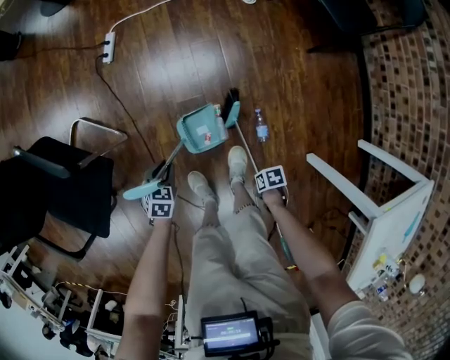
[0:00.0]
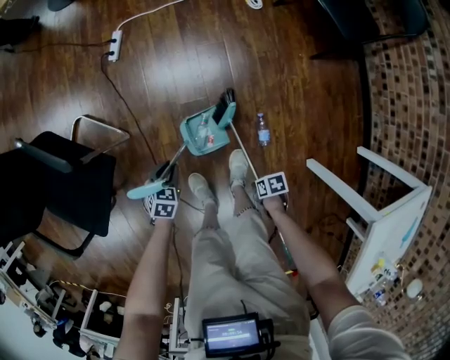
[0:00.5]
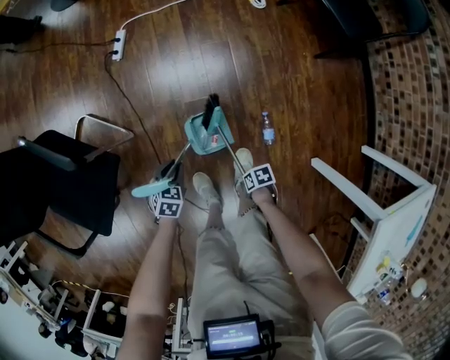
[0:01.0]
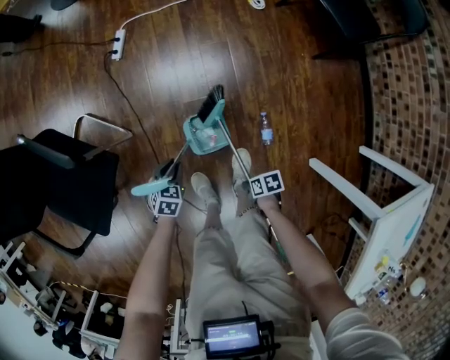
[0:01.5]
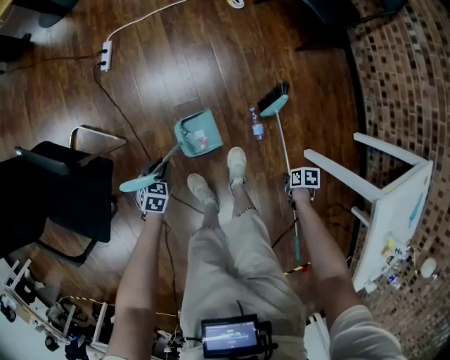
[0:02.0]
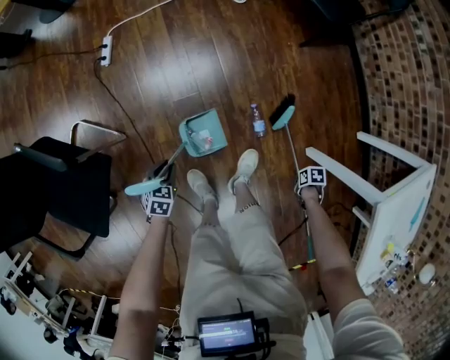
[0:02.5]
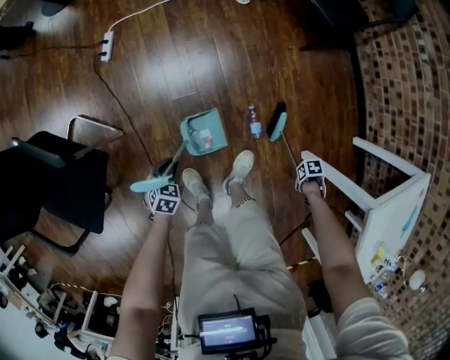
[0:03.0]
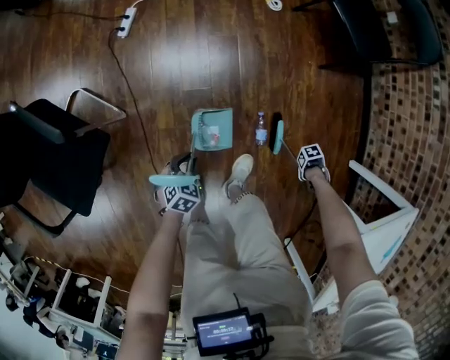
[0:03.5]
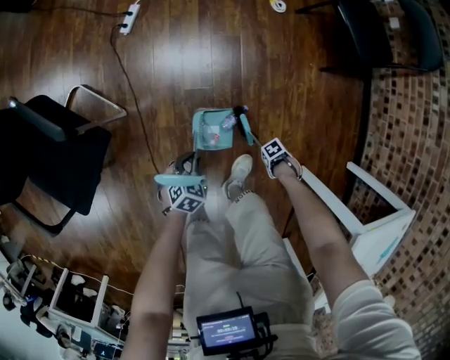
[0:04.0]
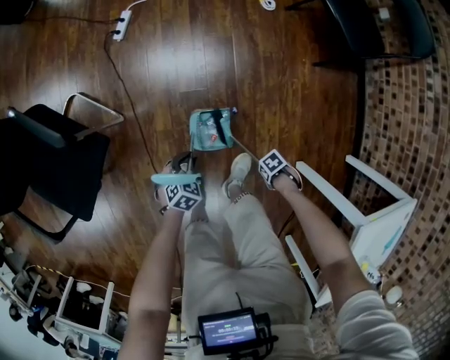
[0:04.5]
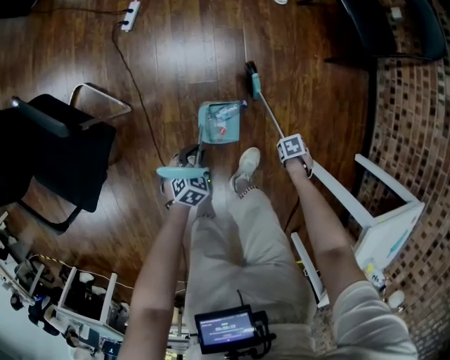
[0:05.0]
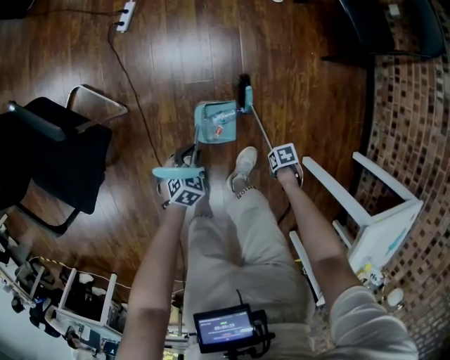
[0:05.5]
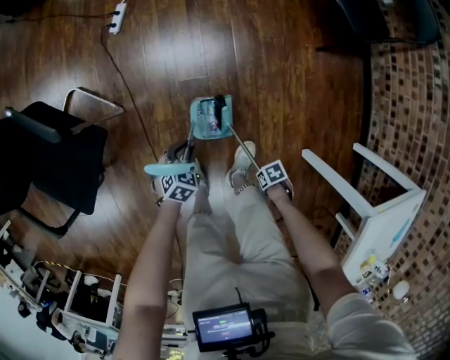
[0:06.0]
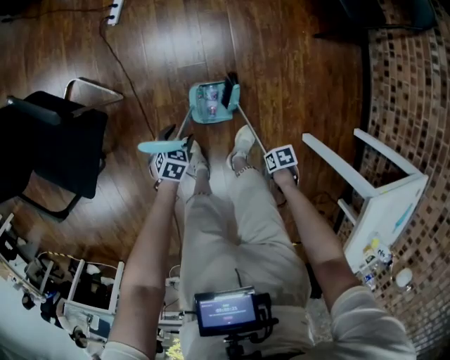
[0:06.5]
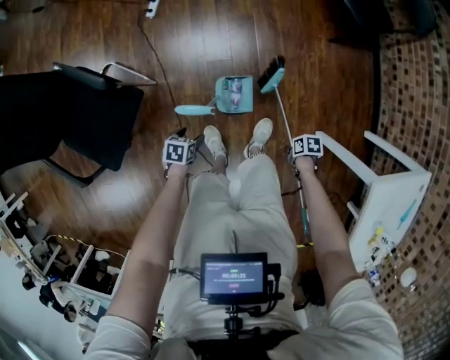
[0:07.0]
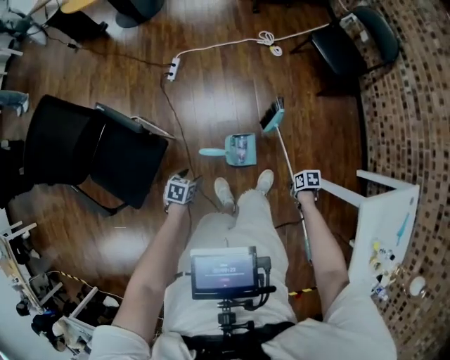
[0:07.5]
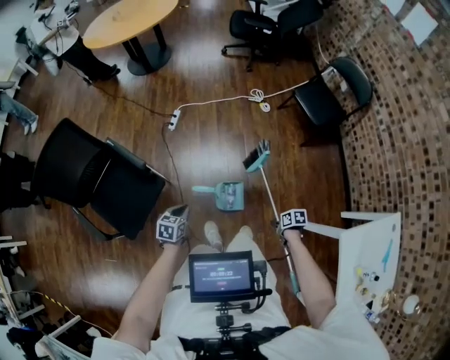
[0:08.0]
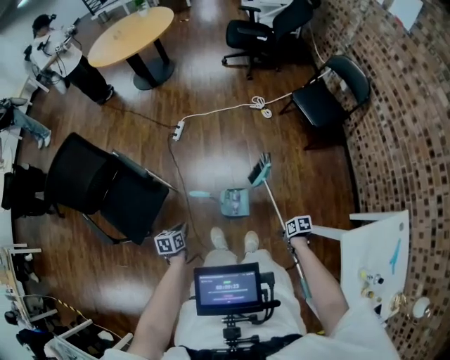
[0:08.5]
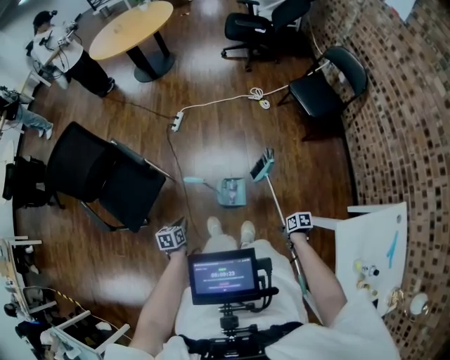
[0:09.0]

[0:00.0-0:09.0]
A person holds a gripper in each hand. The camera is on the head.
0:02.0 to 0:04.5: The left gripper ends up about 10 cm from where it was.
0:04.5 to 0:07.0: The left gripper ends up about 15 cm from where it was, turns by about 30 degrees, and opens its fingers.
0:07.0 to 0:09.0: The left gripper shifts roughly 30 cm upward, turns by roughly 30 degrees, and closes its fingers.

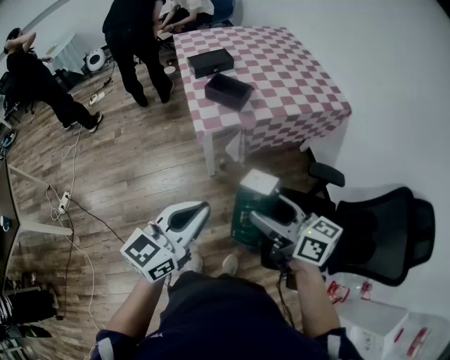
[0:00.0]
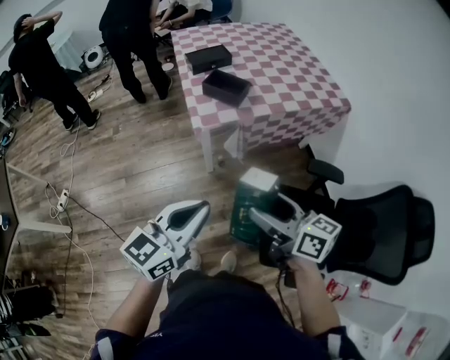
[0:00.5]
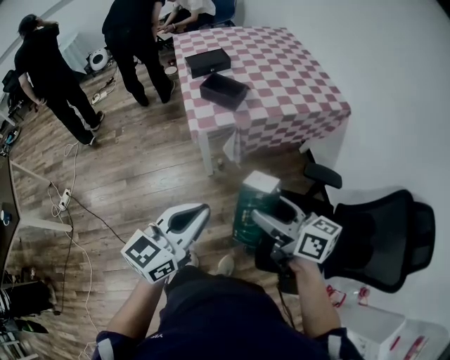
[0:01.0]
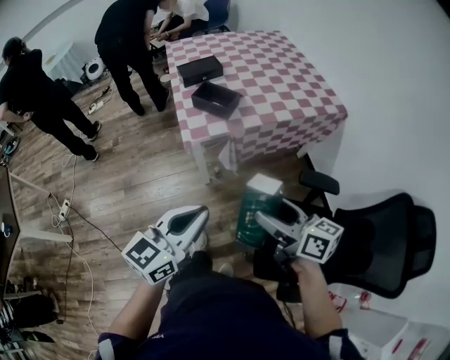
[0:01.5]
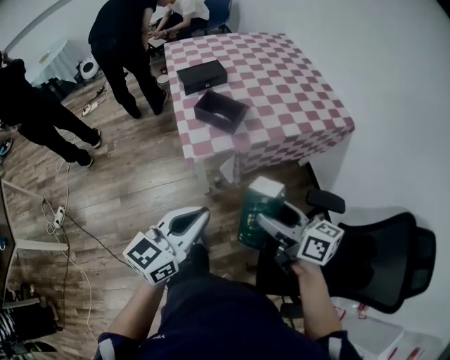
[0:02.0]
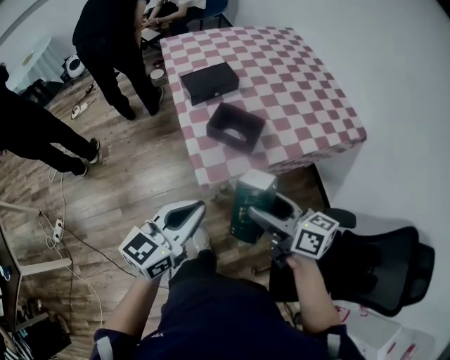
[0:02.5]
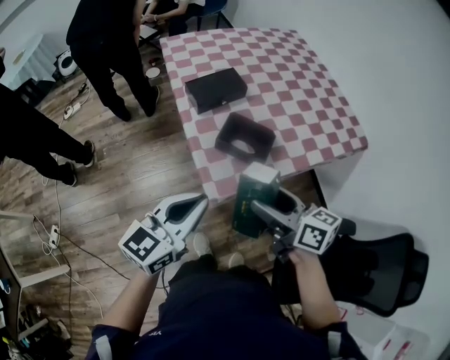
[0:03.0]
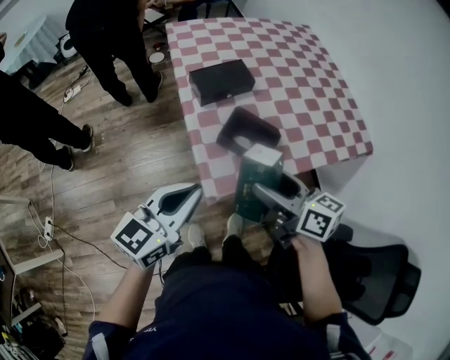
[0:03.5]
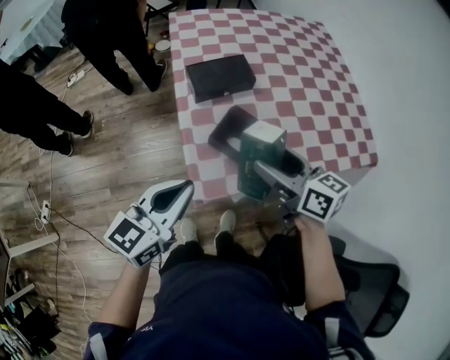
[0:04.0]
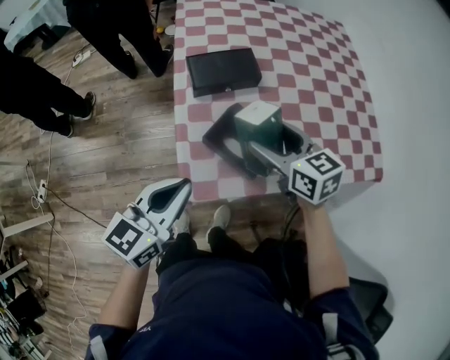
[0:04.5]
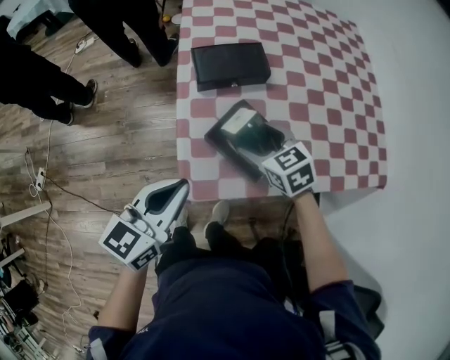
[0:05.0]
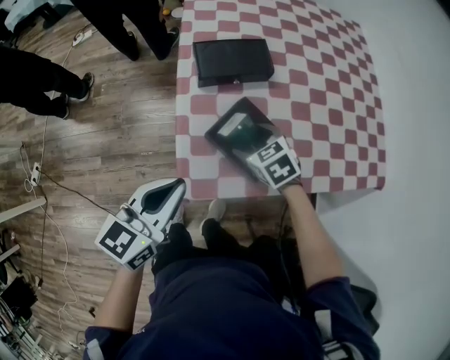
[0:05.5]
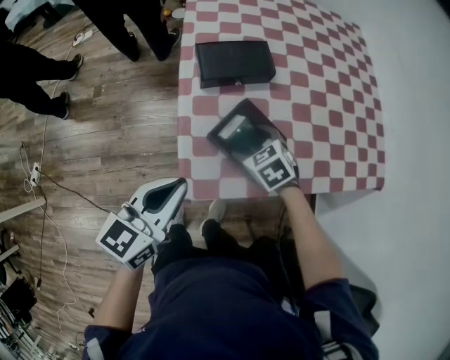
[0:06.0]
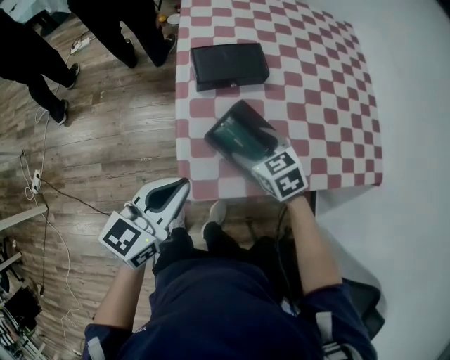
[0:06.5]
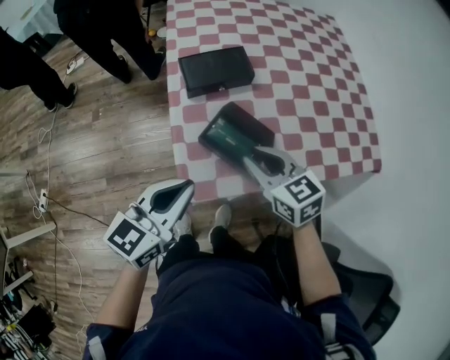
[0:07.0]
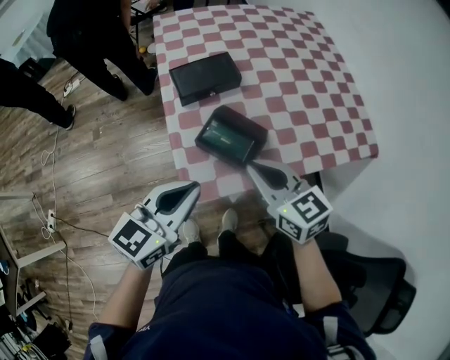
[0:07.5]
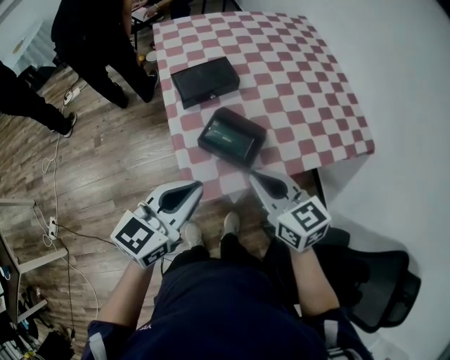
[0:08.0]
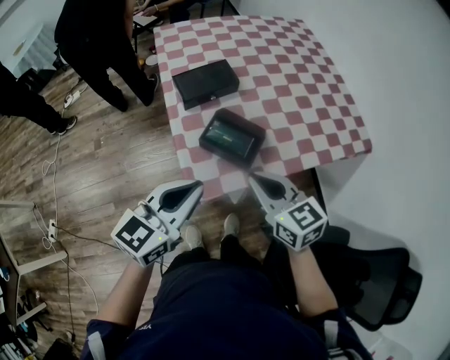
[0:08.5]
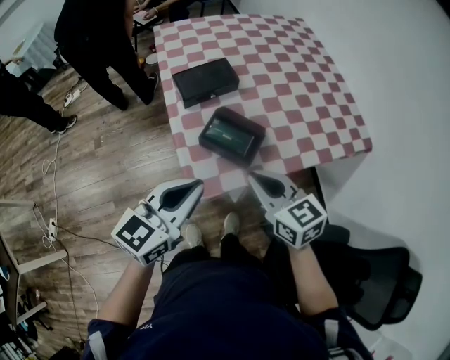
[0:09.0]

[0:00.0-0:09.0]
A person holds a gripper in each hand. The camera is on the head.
0:00.0 to 0:02.0: The left gripper goes some 15 cm forward; the right gripper moves forward and to the right, about 15 cm.
0:02.0 to 0:04.5: Both grippers move forward, roughly 40 cm. The right gripper turns by roughly 30 degrees.
0:04.5 to 0:07.0: The right gripper travels backward by approximately 5 cm, travels downward and back again, about 15 cm each way, and closes up.
0:07.0 to 0:09.0: The right gripper is displaced backward and upward by some 10 cm. The left gripper moves some 5 cm.

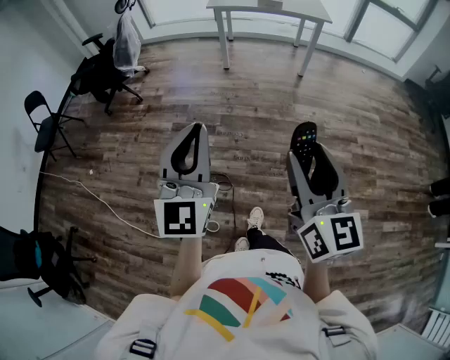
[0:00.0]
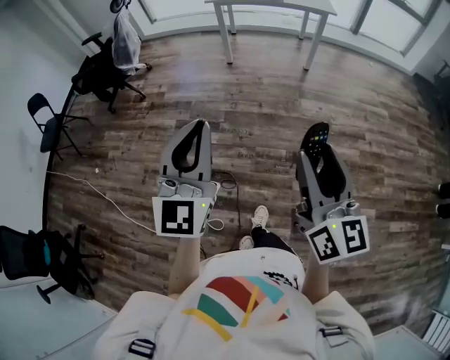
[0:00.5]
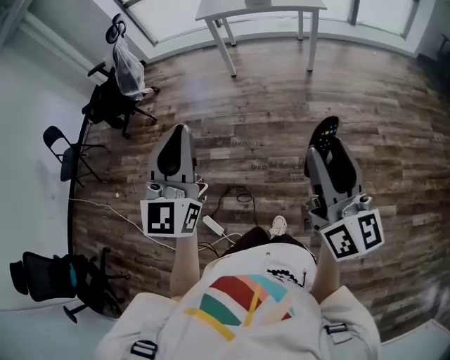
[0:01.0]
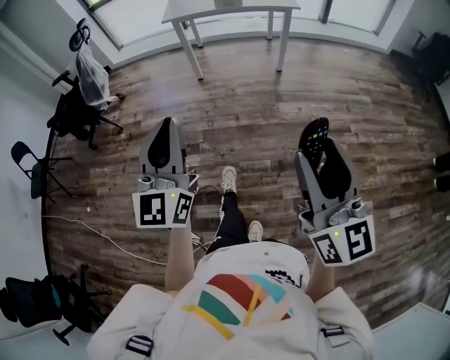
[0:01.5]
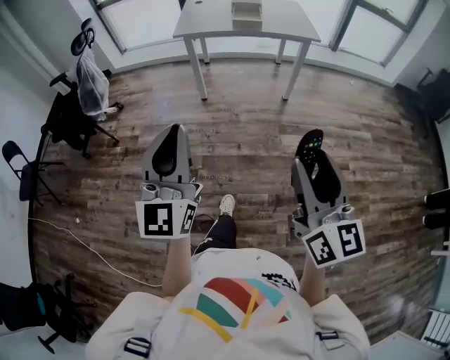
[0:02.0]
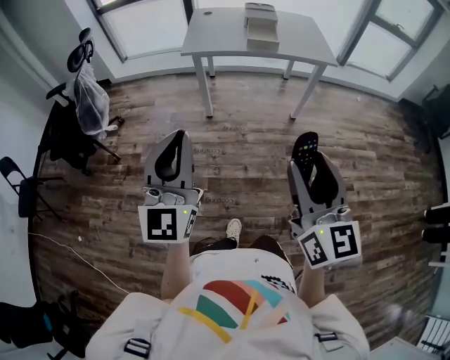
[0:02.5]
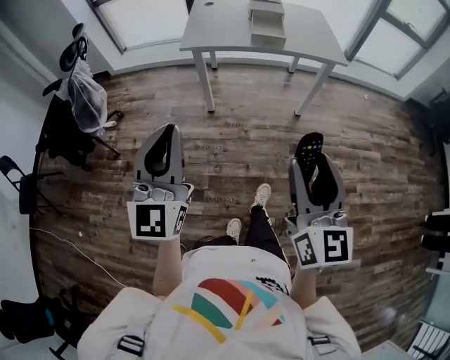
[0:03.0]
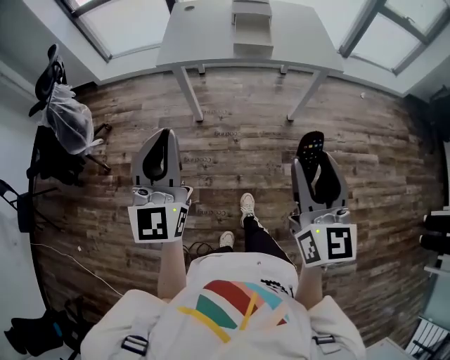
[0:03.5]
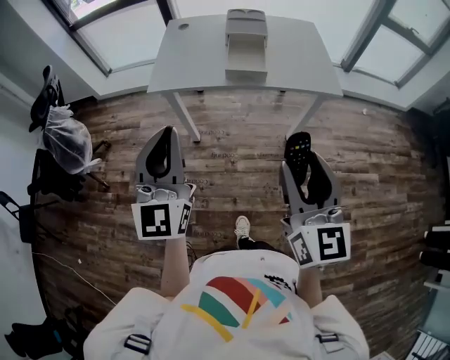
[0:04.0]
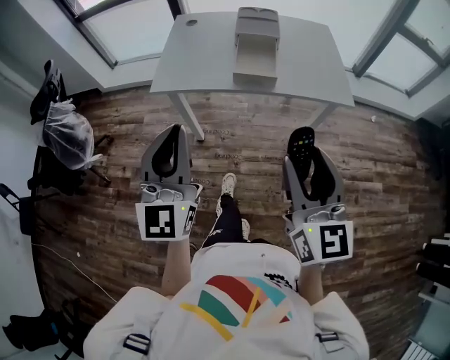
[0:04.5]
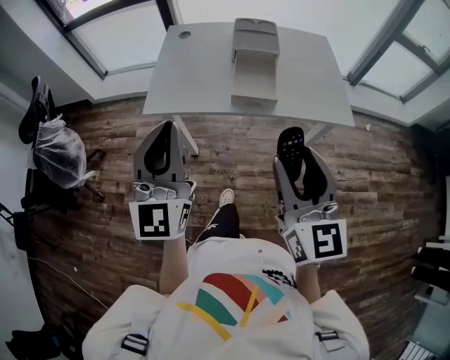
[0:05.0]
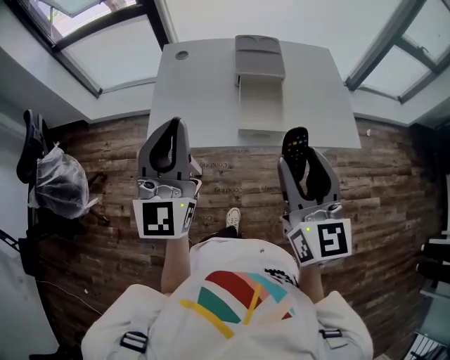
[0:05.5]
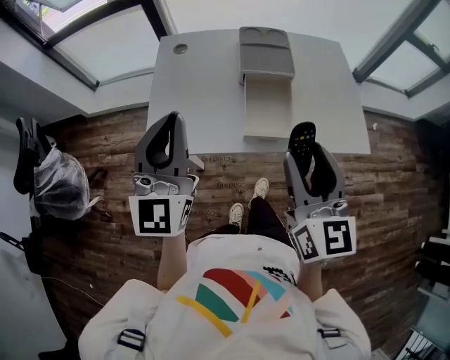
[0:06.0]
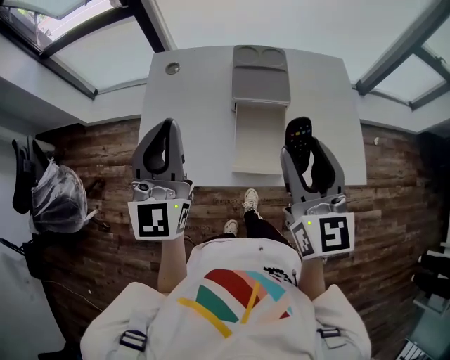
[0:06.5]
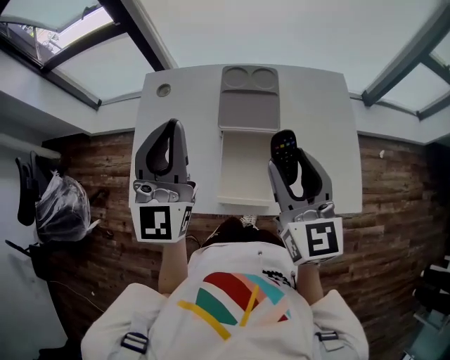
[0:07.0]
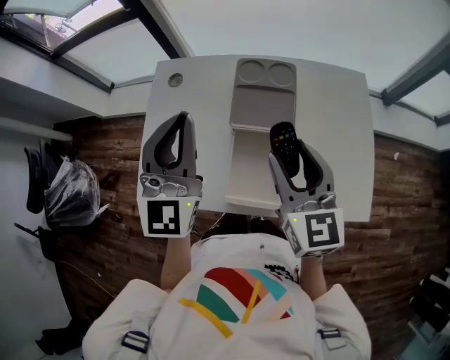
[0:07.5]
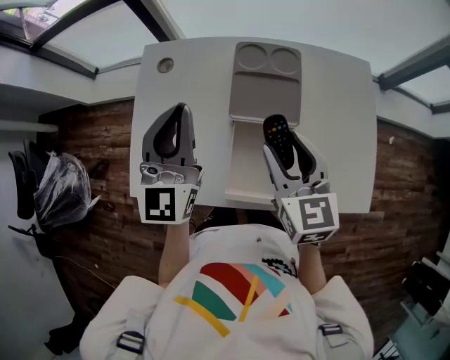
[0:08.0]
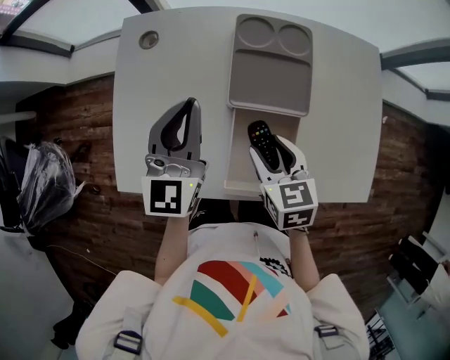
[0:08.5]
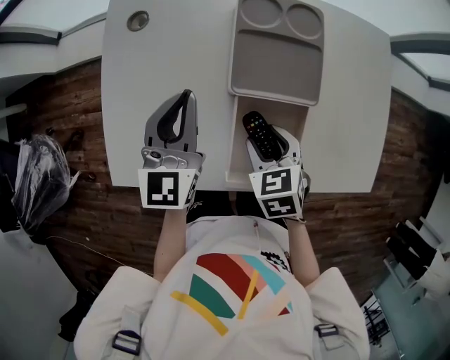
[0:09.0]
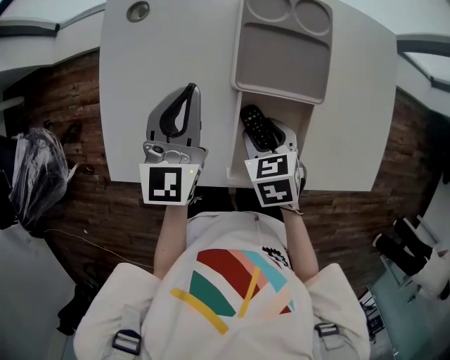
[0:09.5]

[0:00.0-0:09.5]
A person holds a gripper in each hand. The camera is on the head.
0:00.0 to 0:02.0: Both grippers move forward, approximately 30 cm.
0:02.0 to 0:04.0: Both grippers are carried forward, about 50 cm.
0:04.0 to 0:05.5: The two grippers go some 30 cm forward.
0:05.5 to 0:07.5: Both grippers travel together forward, about 30 cm.
0:07.5 to 0:09.5: Both grippers move downward, about 25 cm. The left gripper swivels some 30 degrees; the right gripper tips its fingers downward by about 50 degrees.
